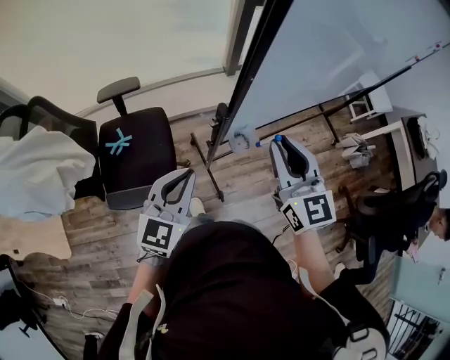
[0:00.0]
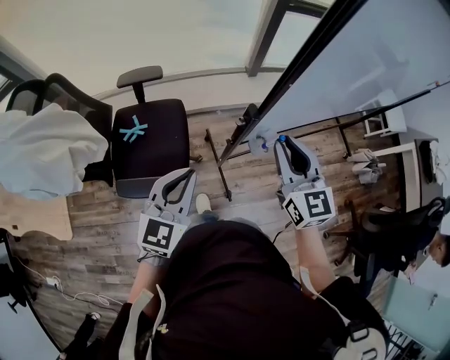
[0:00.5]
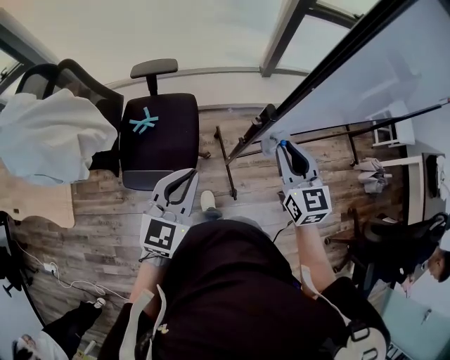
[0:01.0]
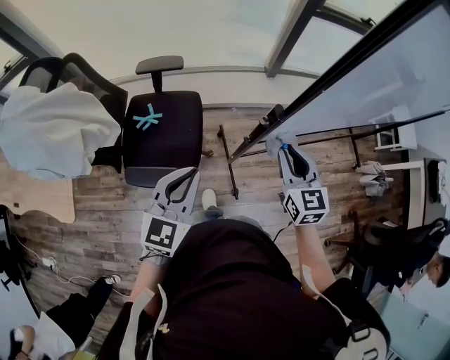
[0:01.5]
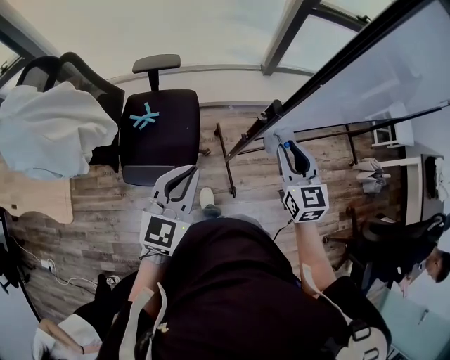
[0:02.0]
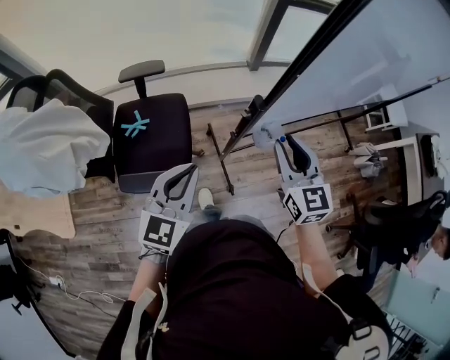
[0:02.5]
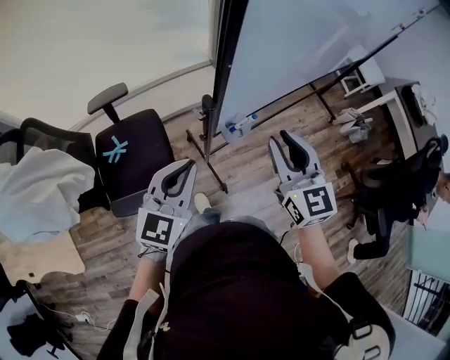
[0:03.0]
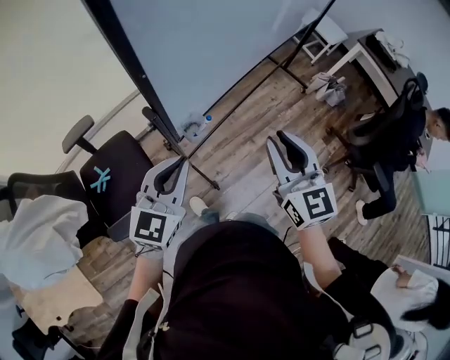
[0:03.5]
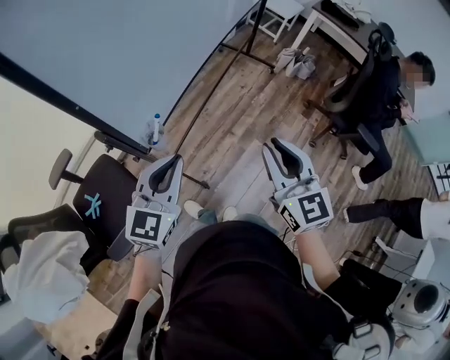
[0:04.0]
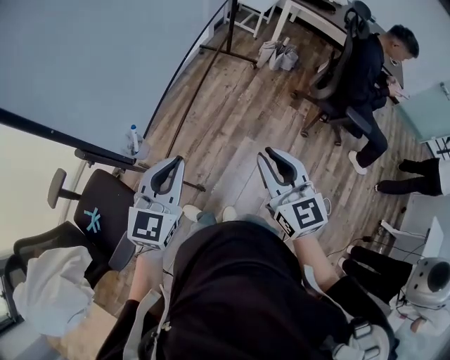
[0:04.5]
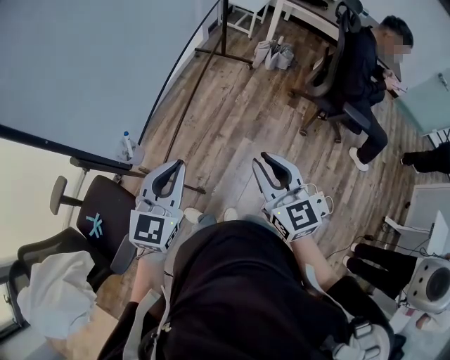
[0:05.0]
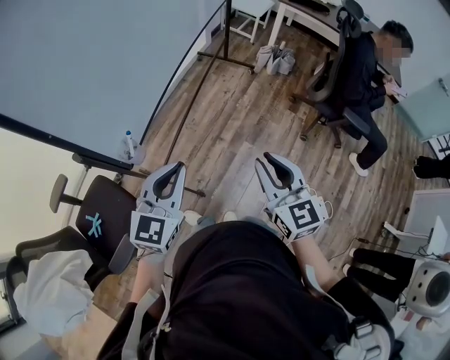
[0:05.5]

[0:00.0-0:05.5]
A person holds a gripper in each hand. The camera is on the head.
0:00.0 to 0:02.0: The right gripper moves downward, roughly 10 cm. Meanwhile the left gripper goes roughly 10 cm to the left.
0:02.0 to 0:03.5: The left gripper moves about 20 cm, and rotates about 30 degrees, while the right gripper shifts by roughly 20 cm, and changes its angle by approximately 30 degrees.
0:03.5 to 0:05.5: The left gripper is displaced to the right by about 20 cm; the right gripper goes some 20 cm to the right and backward.

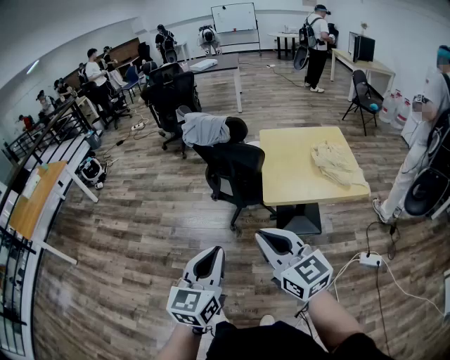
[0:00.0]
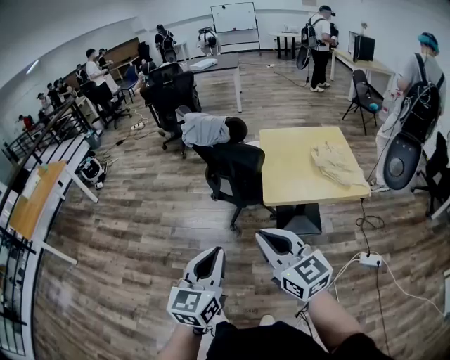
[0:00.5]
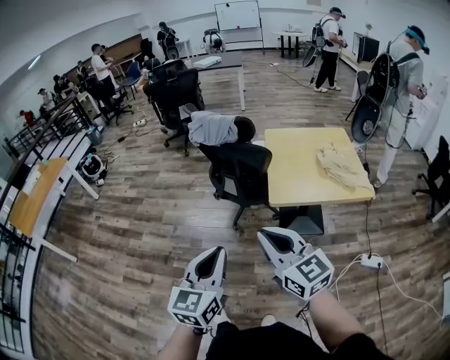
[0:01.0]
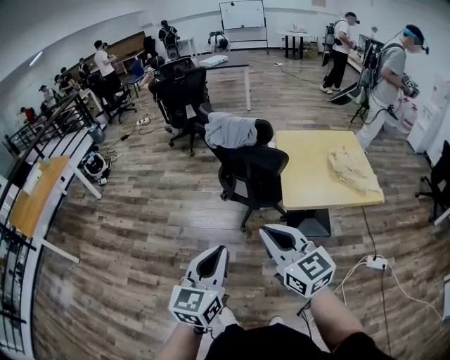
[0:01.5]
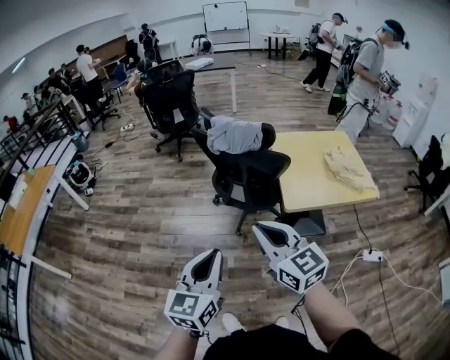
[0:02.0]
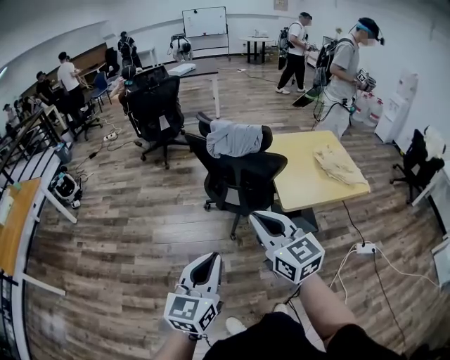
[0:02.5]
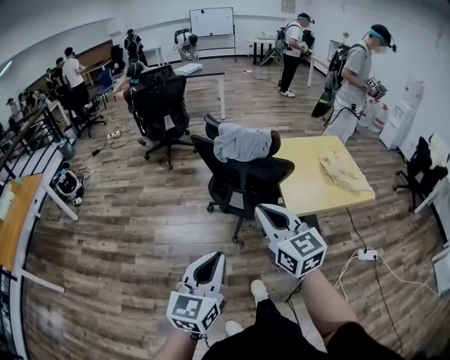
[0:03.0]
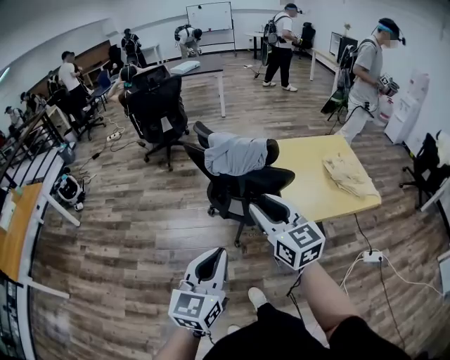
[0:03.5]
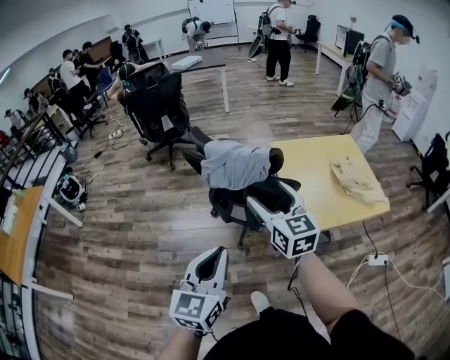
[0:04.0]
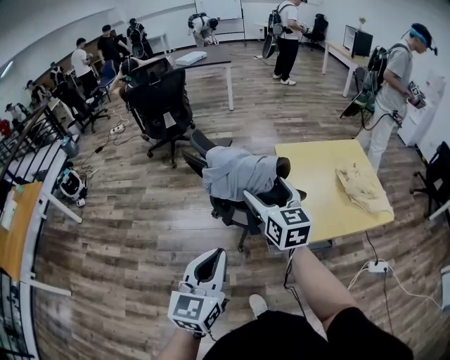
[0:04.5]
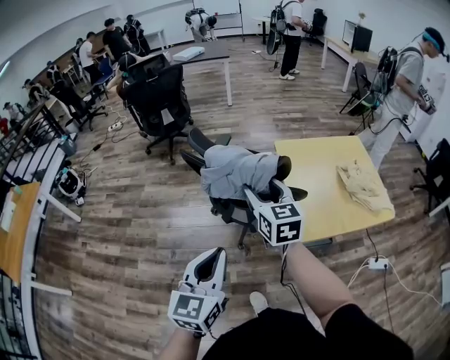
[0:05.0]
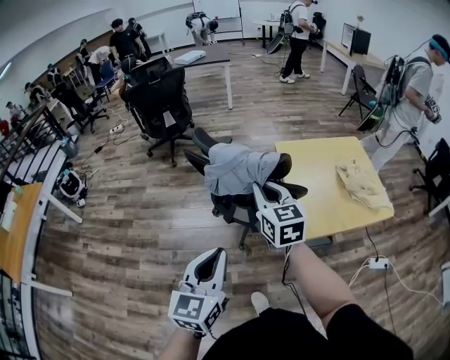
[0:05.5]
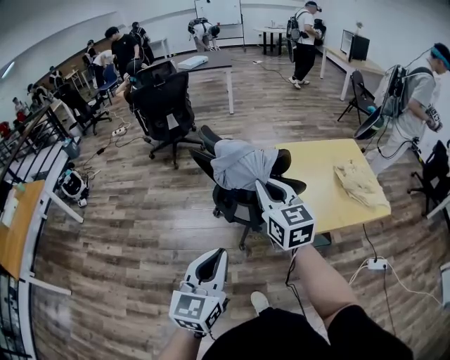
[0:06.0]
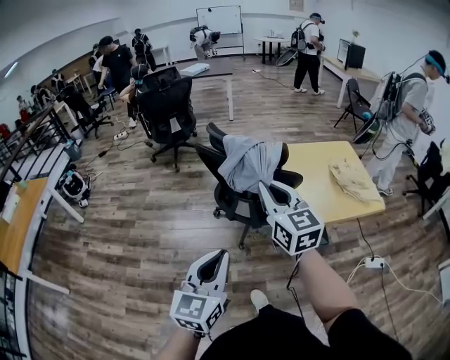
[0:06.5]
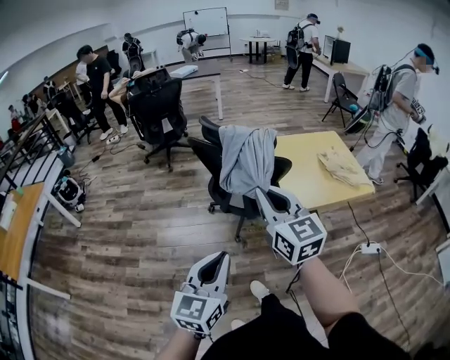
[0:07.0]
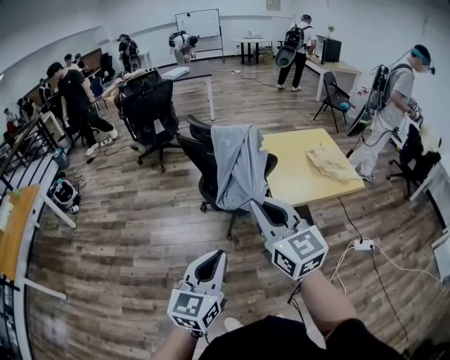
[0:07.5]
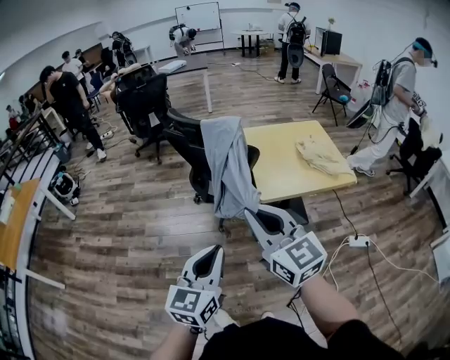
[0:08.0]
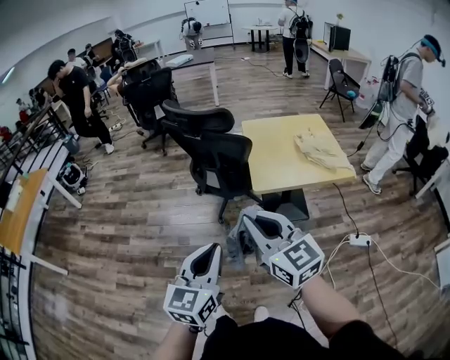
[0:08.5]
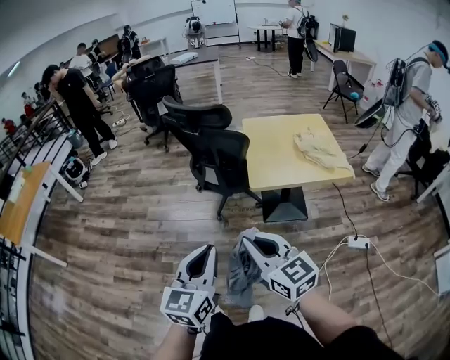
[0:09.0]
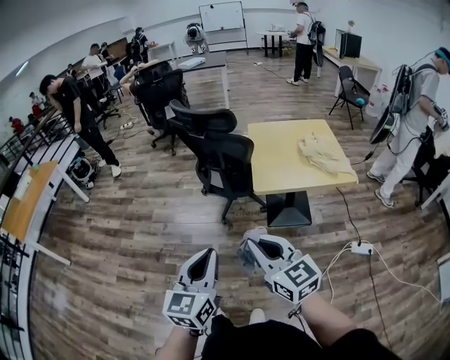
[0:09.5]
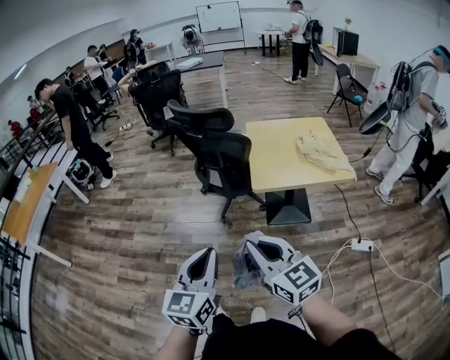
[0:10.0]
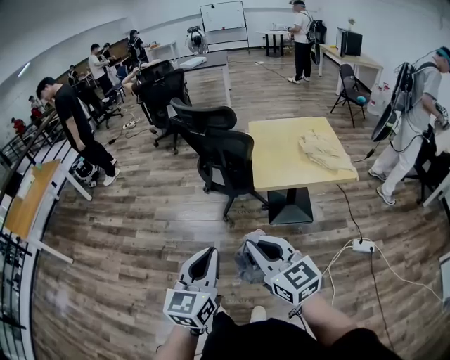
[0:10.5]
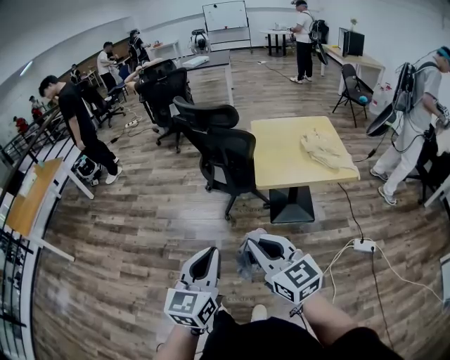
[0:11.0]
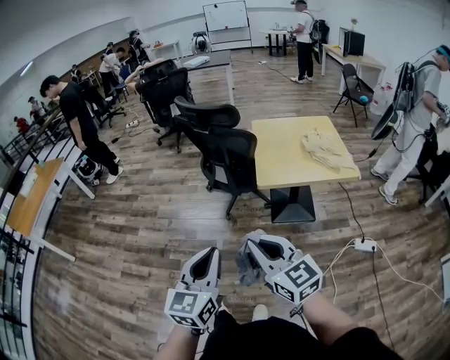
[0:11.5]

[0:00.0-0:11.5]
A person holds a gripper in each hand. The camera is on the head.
0:00.0 to 0:02.0: Both grippers travel together to the left and forward, approximately 20 cm.
0:02.0 to 0:04.0: The two grippers go some 25 cm forward. The right gripper opens.
0:04.0 to 0:06.0: The right gripper travels forward and back again, roughly 10 cm each way, and closes up.
0:06.0 to 0:07.5: Both grippers travel together backward, roughly 25 cm.
0:07.5 to 0:09.5: The right gripper heads backward, to the right and downward, covering approximately 25 cm, while the left gripper shifts some 20 cm to the right and backward.
0:09.5 to 0:11.5: There are only small adjustments of the grippers.

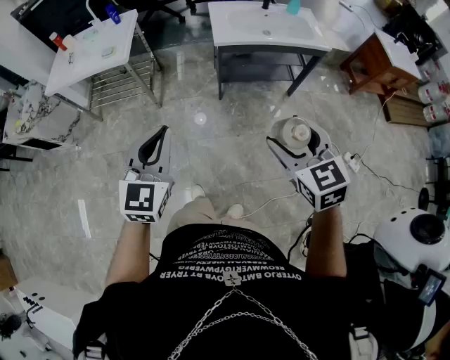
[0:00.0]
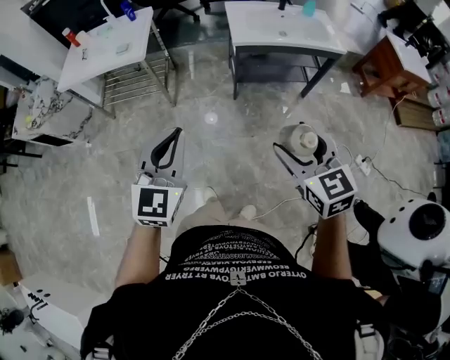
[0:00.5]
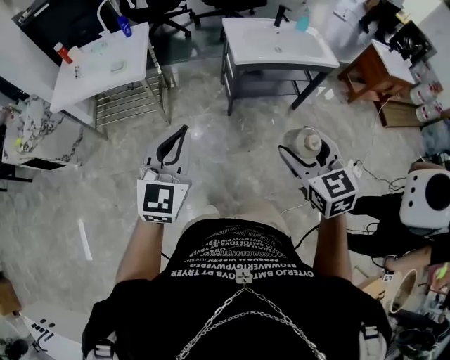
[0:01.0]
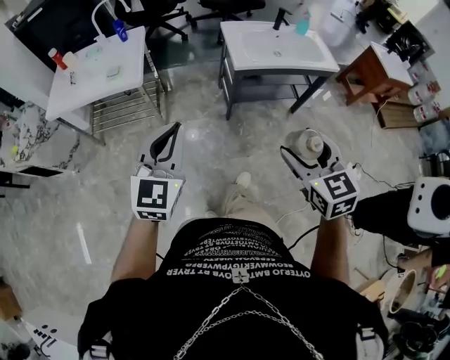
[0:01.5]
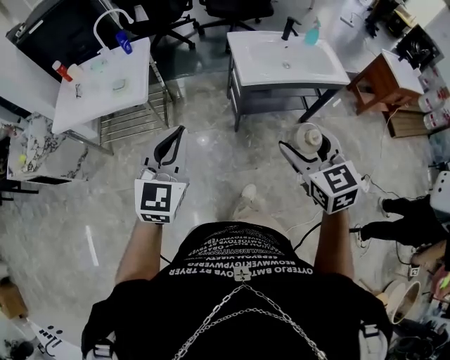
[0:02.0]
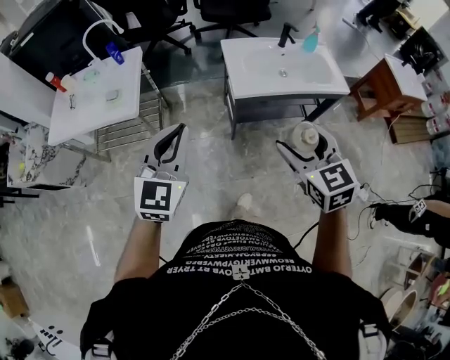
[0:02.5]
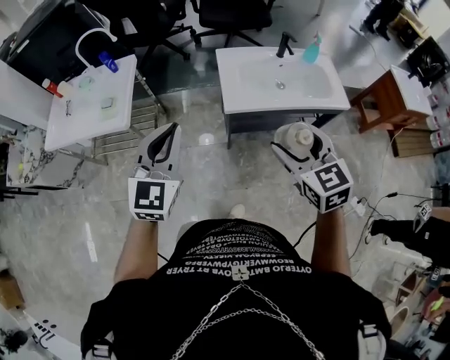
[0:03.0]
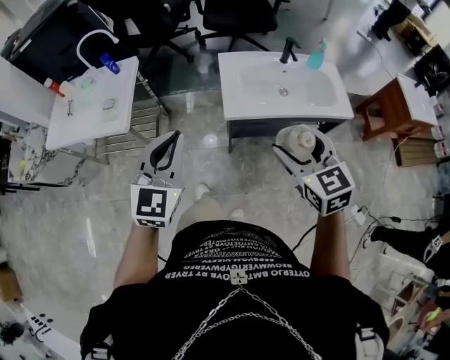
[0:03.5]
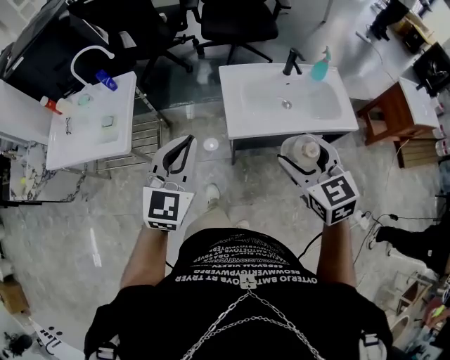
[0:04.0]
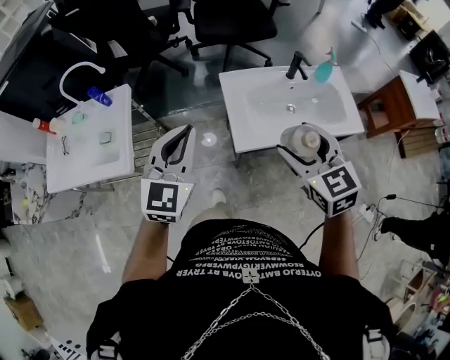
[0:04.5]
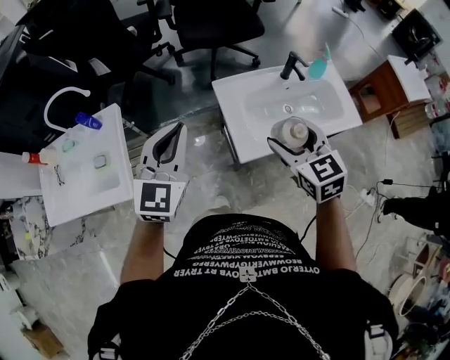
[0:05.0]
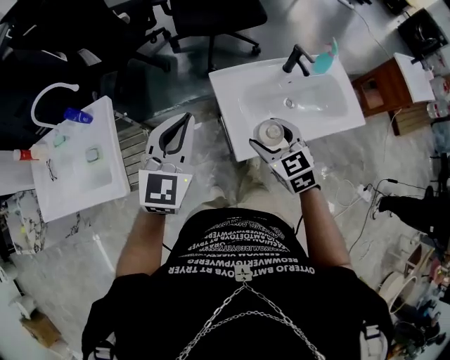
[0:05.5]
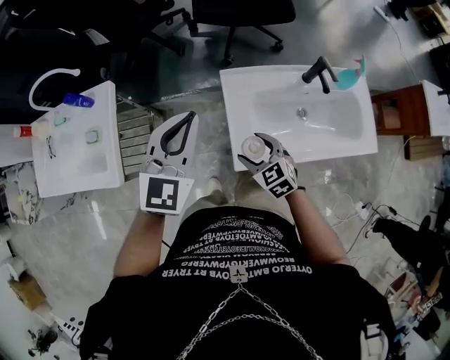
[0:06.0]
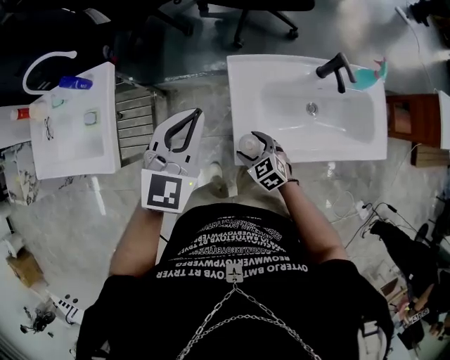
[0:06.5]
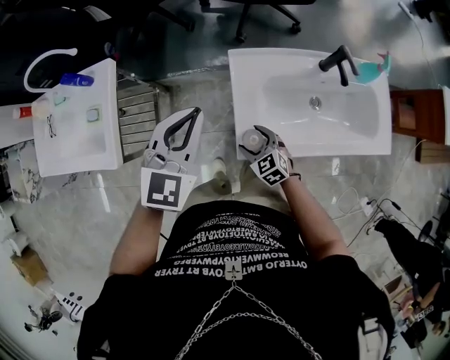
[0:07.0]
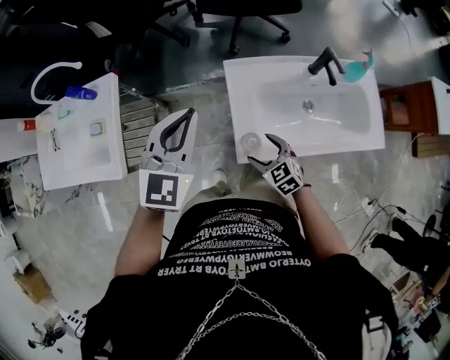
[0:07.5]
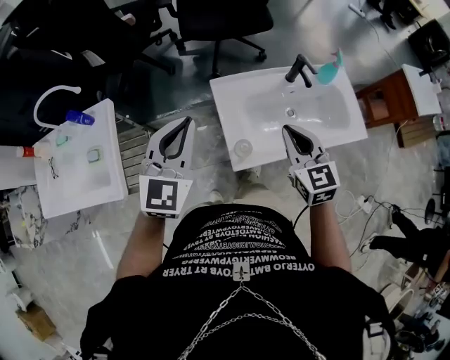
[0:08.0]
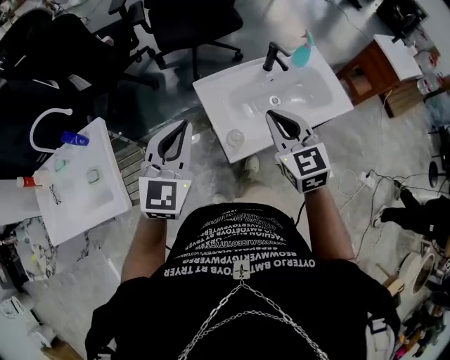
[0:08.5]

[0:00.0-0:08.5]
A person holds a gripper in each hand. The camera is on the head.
0:00.0 to 0:02.0: Both grippers move forward and to the left, roughly 25 cm.
0:02.0 to 0:04.0: The grippers both shift forward and to the right by some 30 cm.
0:04.0 to 0:06.5: The left gripper travels forward by roughly 35 cm; the right gripper goes some 50 cm downward and forward, and turns by about 30 degrees.
0:06.5 to 0:08.5: The left gripper changes place by roughly 15 cm, while the right gripper shifts roughly 35 cm upward, turns by some 40 degrees, and closes up.

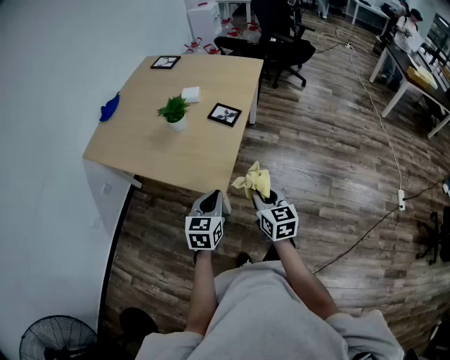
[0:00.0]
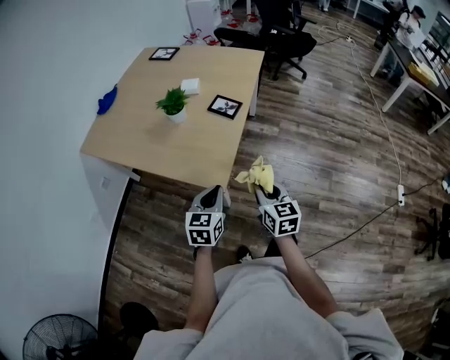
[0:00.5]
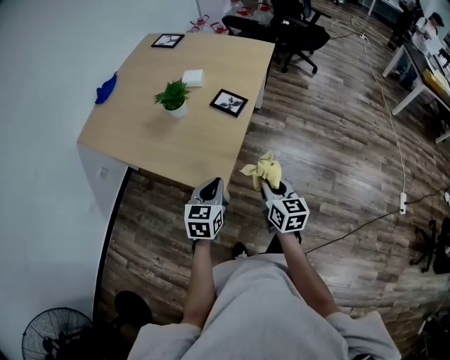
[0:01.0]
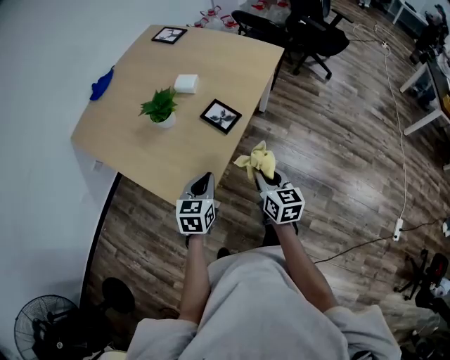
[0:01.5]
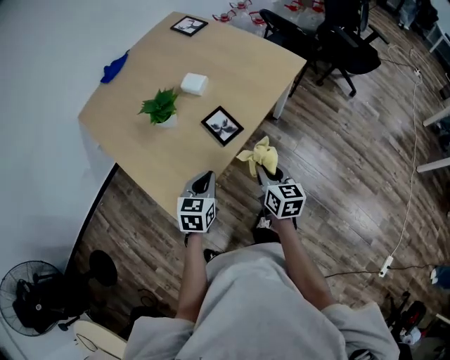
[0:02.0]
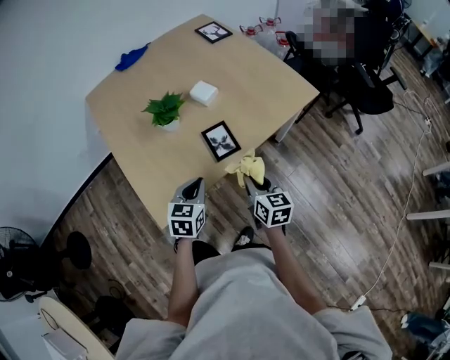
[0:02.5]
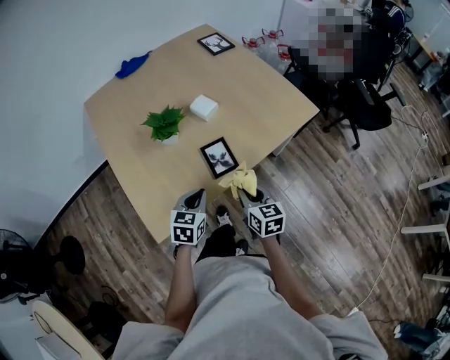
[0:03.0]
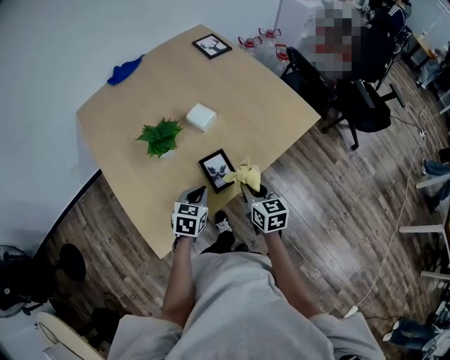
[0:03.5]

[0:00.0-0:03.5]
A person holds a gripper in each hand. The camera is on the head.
0:00.0 to 0:02.0: Both grippers move forward and to the right, approximately 35 cm. The right gripper turns by some 20 degrees. Meanwhile the left gripper rotates about 20 degrees.
0:02.0 to 0:03.5: The left gripper shifts roughly 15 cm forward and downward; the right gripper goes approximately 15 cm forward.
